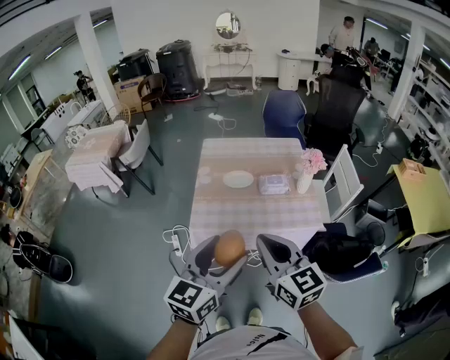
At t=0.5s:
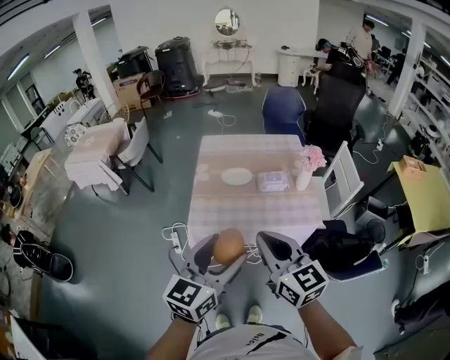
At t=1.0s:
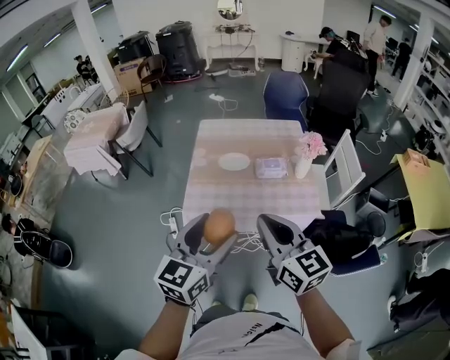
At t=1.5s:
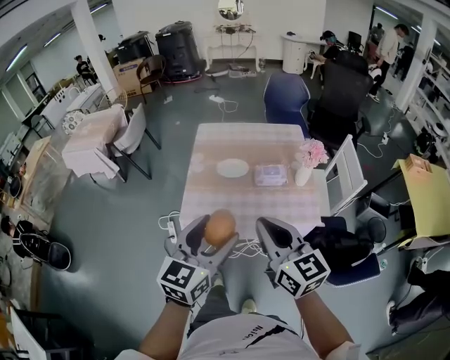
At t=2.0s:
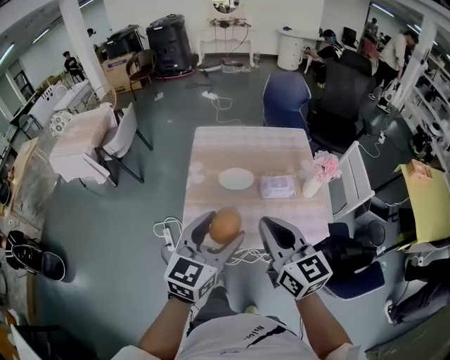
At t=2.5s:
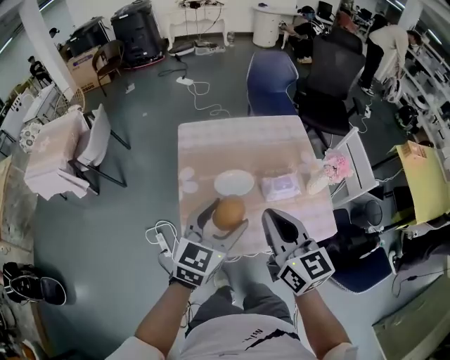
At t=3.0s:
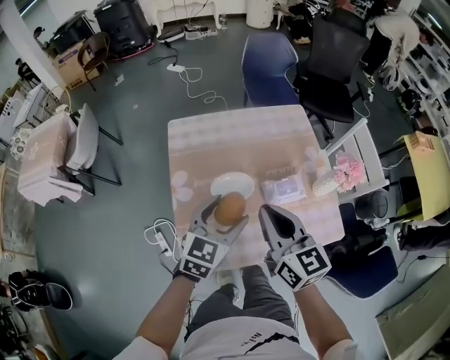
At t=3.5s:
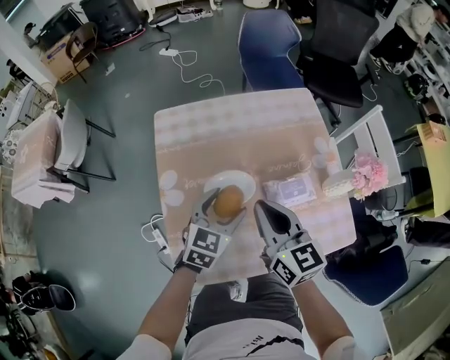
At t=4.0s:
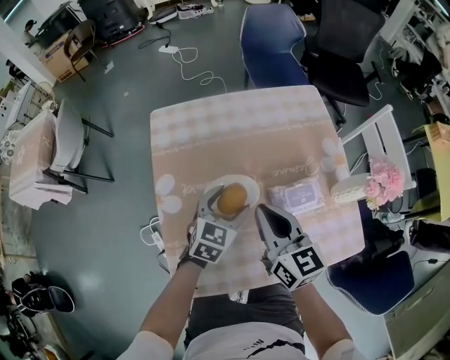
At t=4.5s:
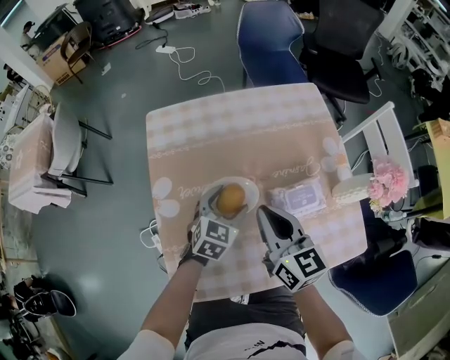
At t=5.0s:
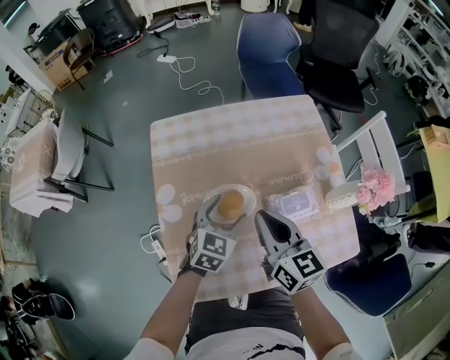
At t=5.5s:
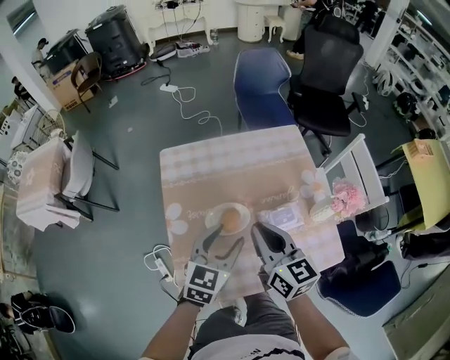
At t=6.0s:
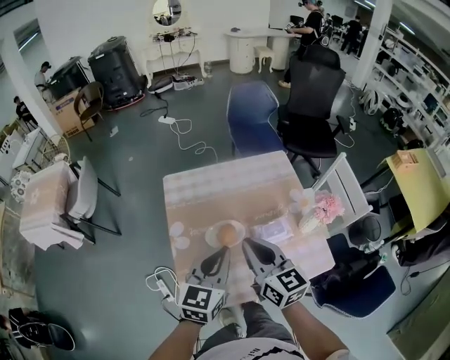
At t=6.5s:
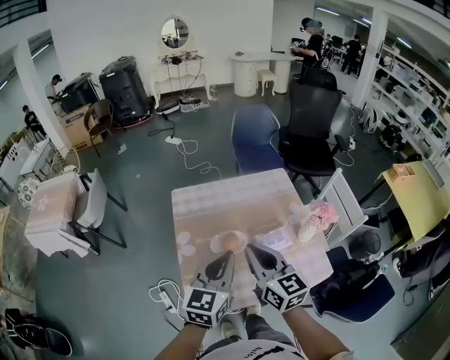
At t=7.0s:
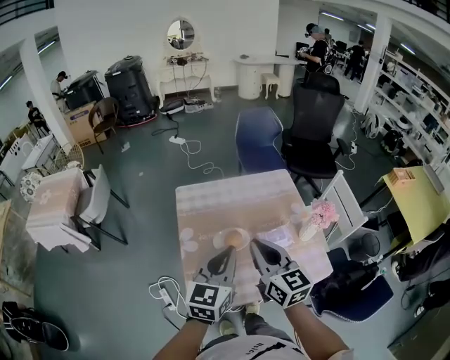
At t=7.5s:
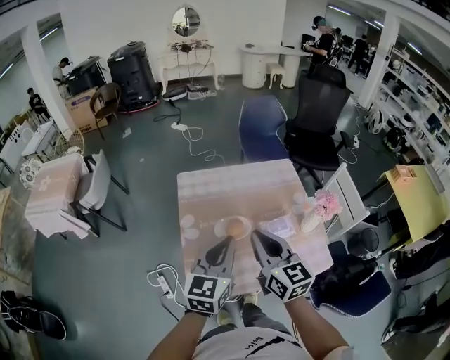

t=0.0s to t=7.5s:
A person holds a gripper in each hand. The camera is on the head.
t=0.0s to t=2.0s: Both grippers move forward, approximately 15 cm.
t=2.0s to t=4.0s: The left gripper moves downward and forward, approximately 50 cm, and swivels some 30 degrees, while the right gripper travels forward and downward by some 35 cm.
t=4.0s to t=5.5s: The left gripper moves upward, some 15 cm, while the right gripper is displaced upward by approximately 10 cm.
t=5.5s to t=7.5s: The grippers both shift upward and backward by some 15 cm. The left gripper closes.

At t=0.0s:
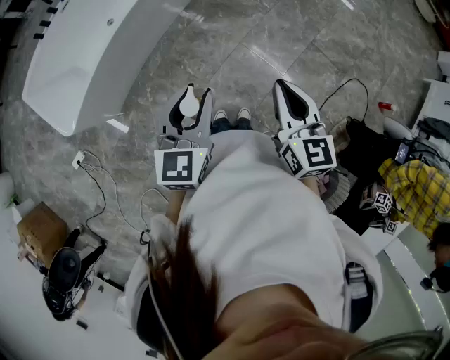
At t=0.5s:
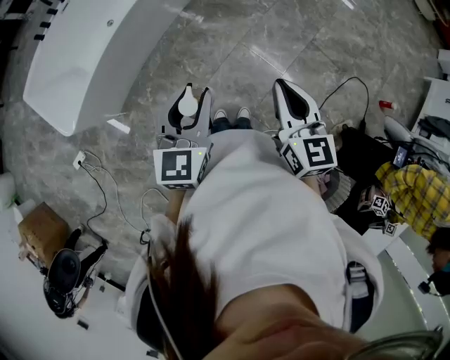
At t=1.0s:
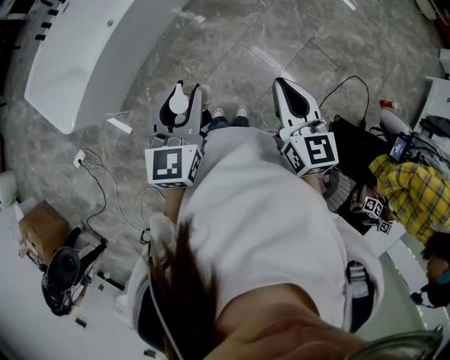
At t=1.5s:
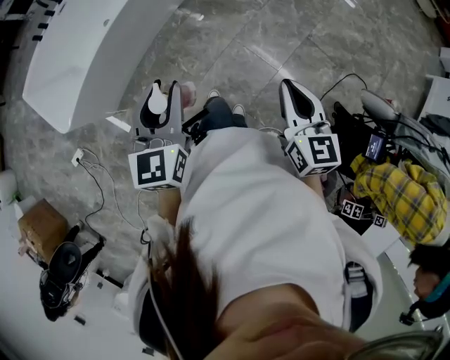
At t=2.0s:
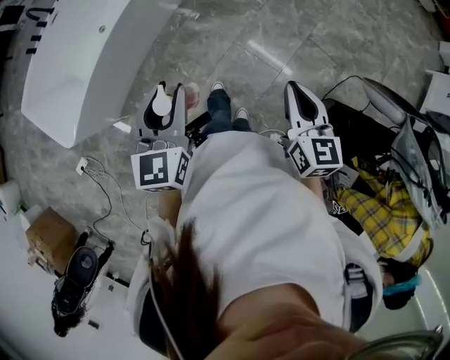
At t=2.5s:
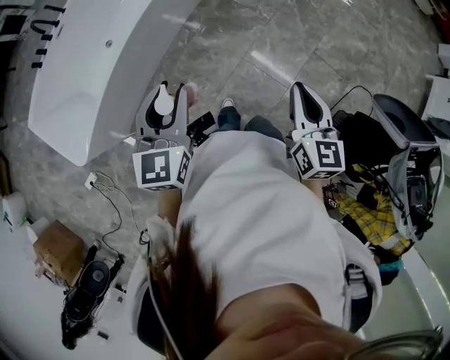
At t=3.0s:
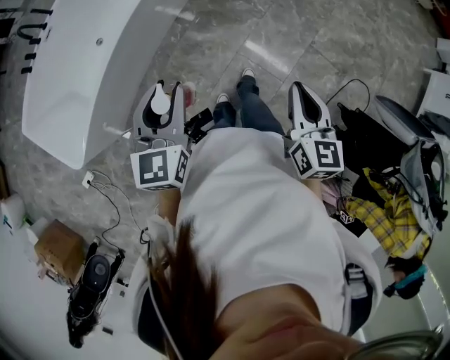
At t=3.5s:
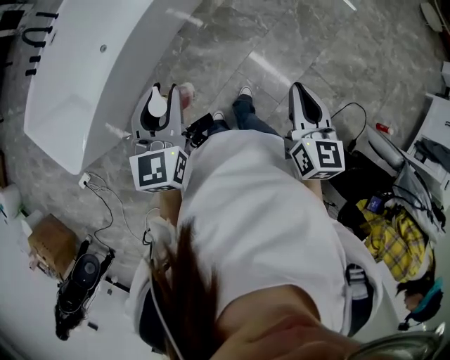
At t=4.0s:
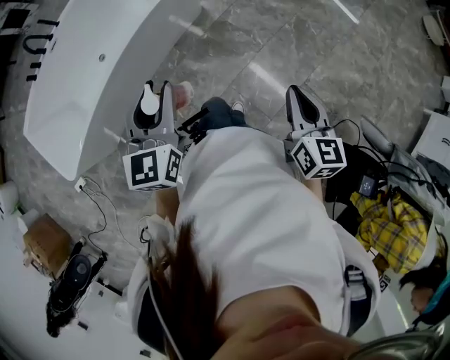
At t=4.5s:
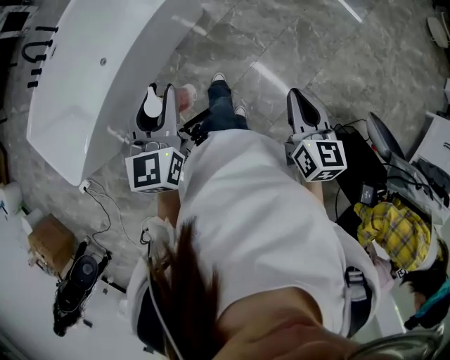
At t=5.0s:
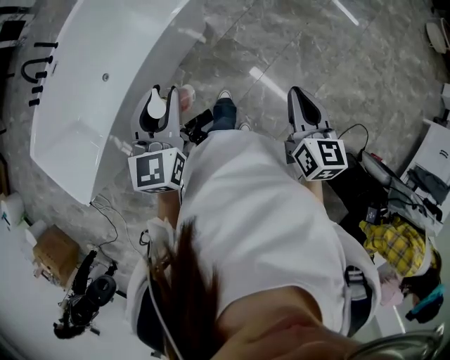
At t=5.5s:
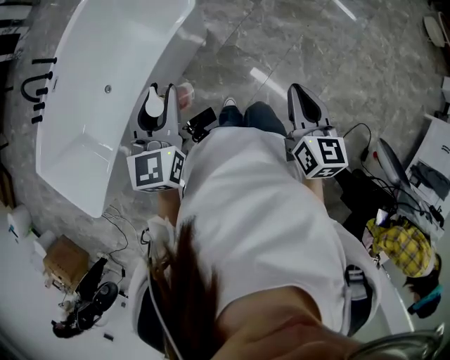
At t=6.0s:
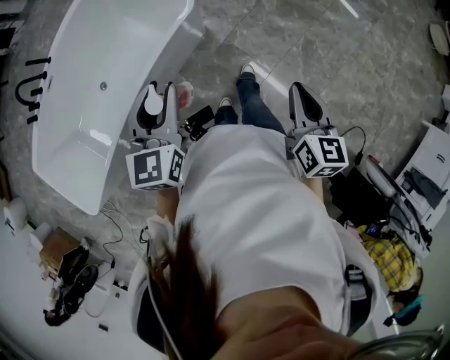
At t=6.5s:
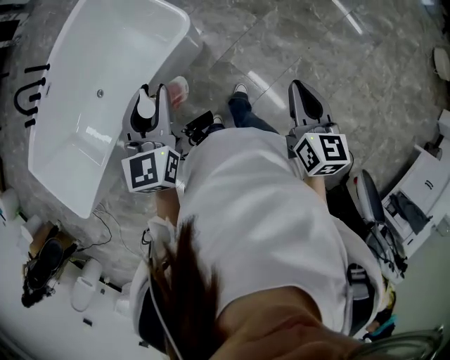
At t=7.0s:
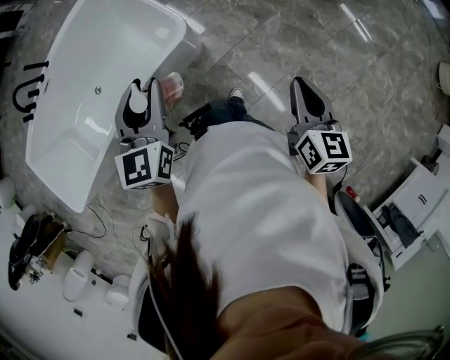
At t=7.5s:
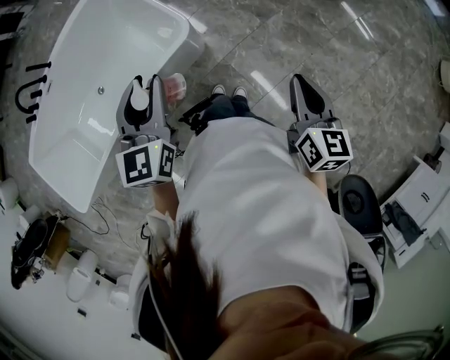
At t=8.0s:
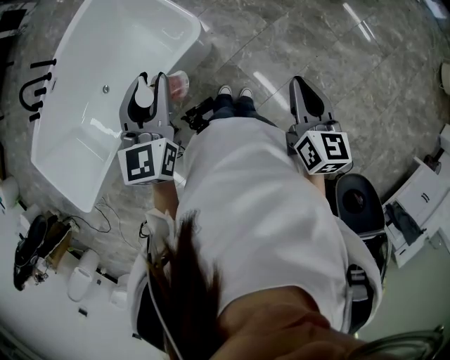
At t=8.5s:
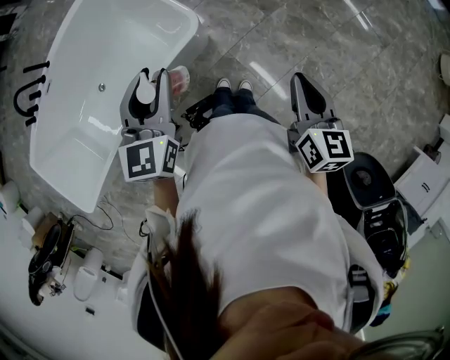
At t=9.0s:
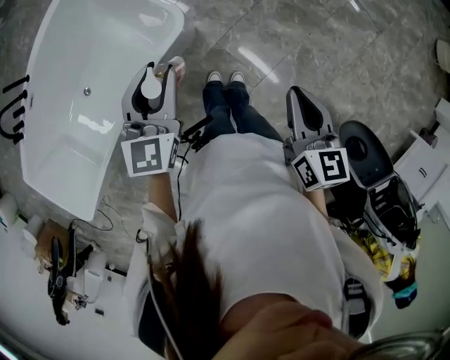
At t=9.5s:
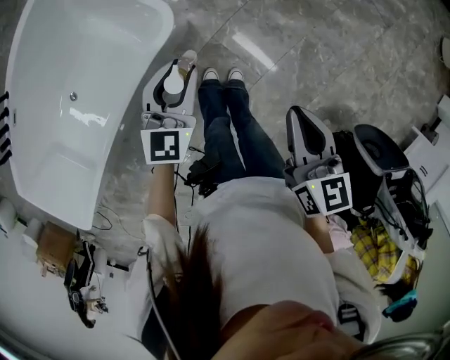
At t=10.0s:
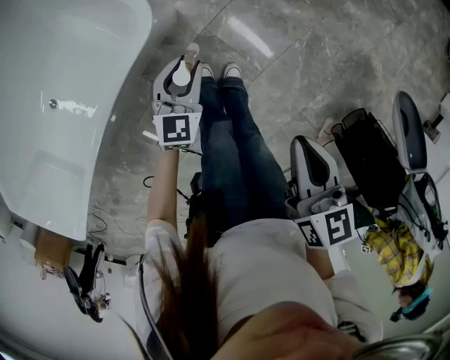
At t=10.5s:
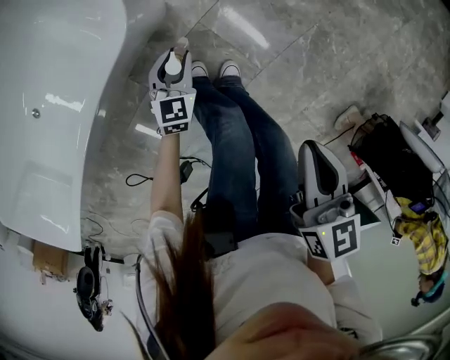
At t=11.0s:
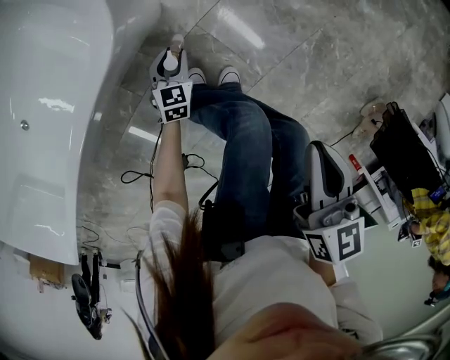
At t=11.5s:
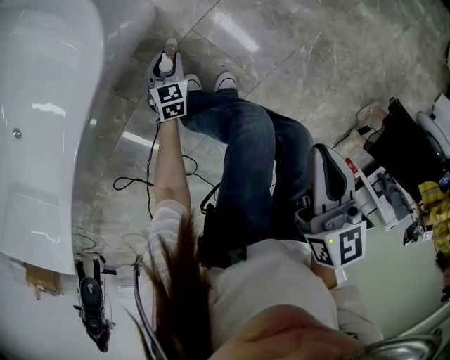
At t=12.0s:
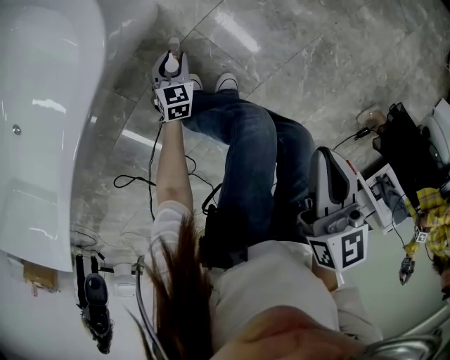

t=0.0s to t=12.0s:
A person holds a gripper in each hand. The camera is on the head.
t=0.0s to t=2.0s: The right gripper goes approximately 10 cm to the right; the left gripper travels forward by about 5 cm.
t=2.0s to t=4.0s: The grippers both shift forward by about 30 cm.
t=4.0s to t=6.0s: Both grippers travel together forward, about 30 cm.
t=6.0s to t=8.0s: Both grippers travel together forward, about 20 cm.
t=8.0s to t=10.0s: The right gripper moves downward, roughly 20 cm. Meanwhile the left gripper shifts roughly 50 cm downward, and swivels about 30 degrees.
t=10.0s to t=12.0s: The left gripper moves downward, some 40 cm, and turns by roughly 20 degrees. The right gripper goes approximately 15 cm downward.

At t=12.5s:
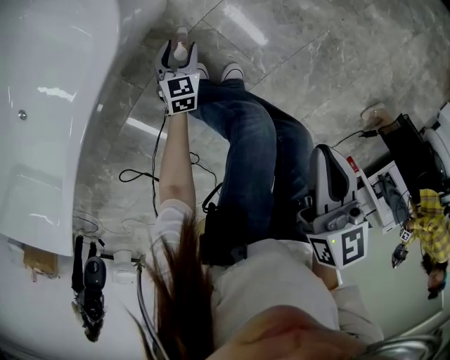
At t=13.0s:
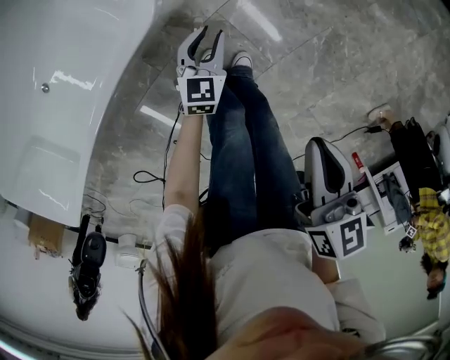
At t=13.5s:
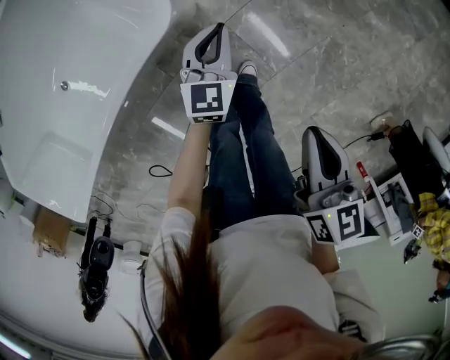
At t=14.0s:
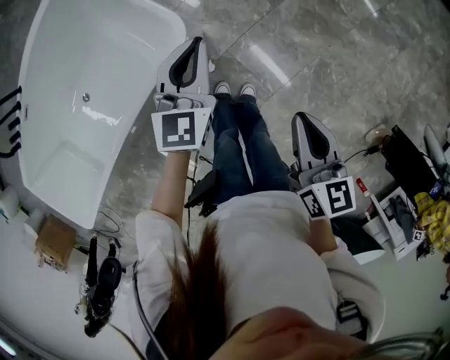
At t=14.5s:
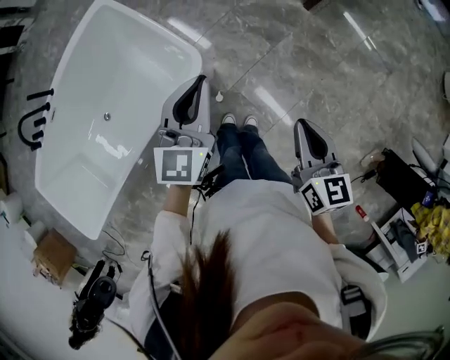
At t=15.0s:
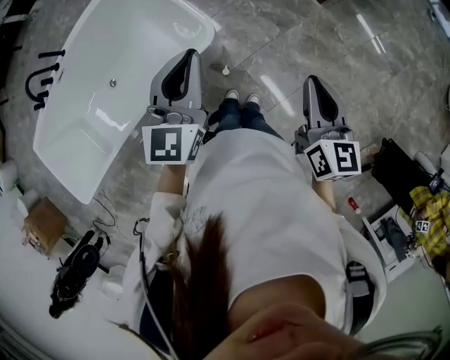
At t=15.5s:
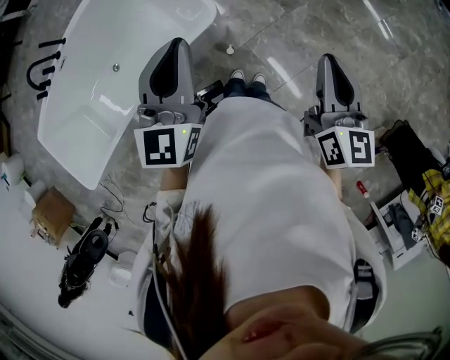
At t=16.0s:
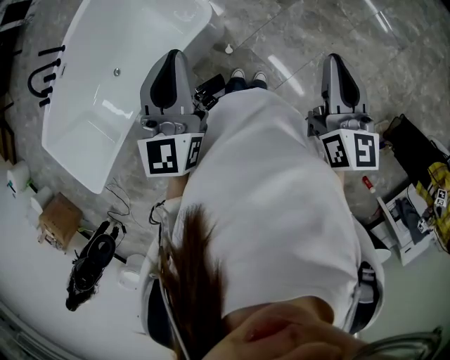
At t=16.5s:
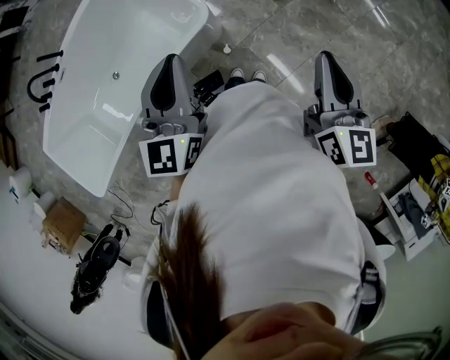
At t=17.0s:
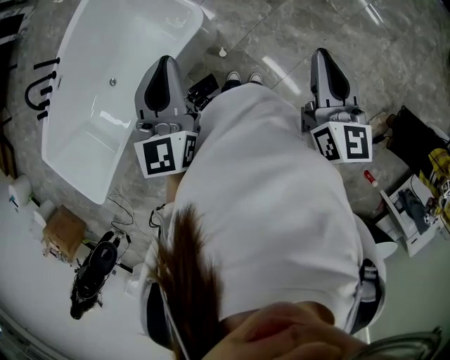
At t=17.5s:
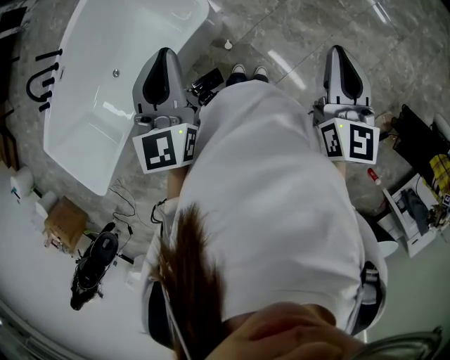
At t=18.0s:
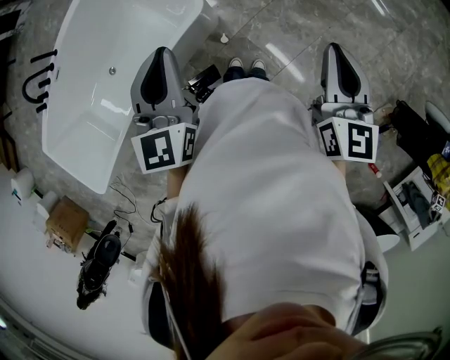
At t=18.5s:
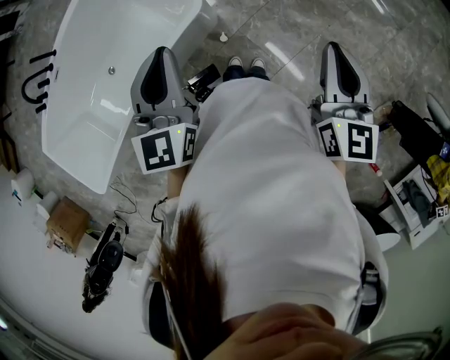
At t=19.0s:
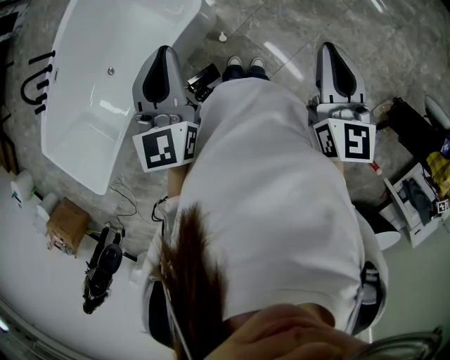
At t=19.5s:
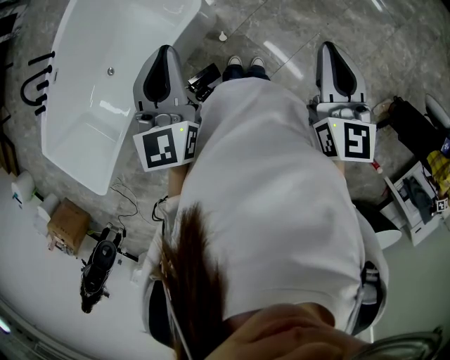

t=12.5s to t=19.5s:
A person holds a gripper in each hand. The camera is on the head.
t=12.5s to t=14.5s: The left gripper shifts some 70 cm upward, tips its fingers upward by about 40 degrees, and closes its fingers, while the right gripper heads upward, covering roughly 35 cm.
t=14.5s to t=16.0s: The left gripper heads upward, backward and to the left, covering some 20 cm. Meanwhile the right gripper heads upward, covering roughly 15 cm.
t=16.0s to t=19.5s: There are only small adjustments of the grippers.
